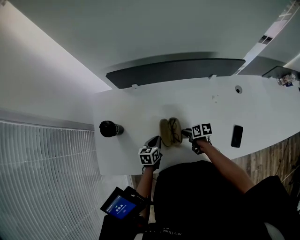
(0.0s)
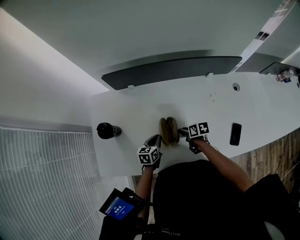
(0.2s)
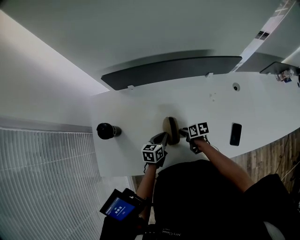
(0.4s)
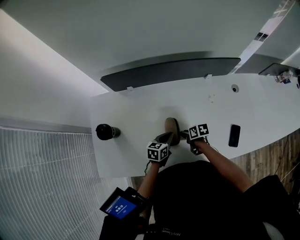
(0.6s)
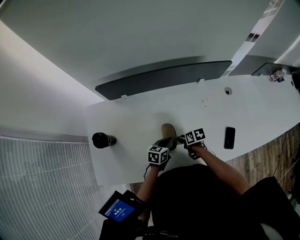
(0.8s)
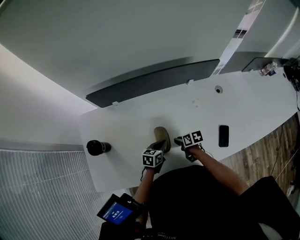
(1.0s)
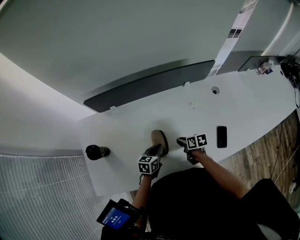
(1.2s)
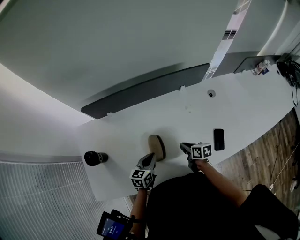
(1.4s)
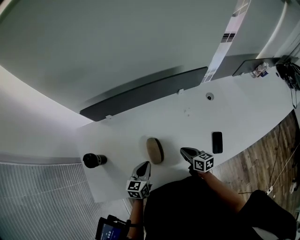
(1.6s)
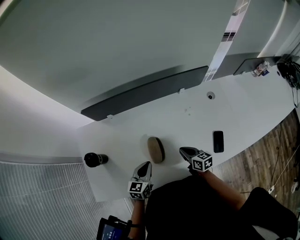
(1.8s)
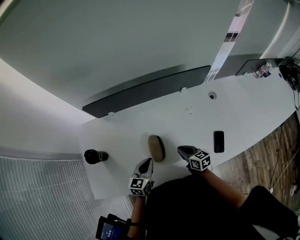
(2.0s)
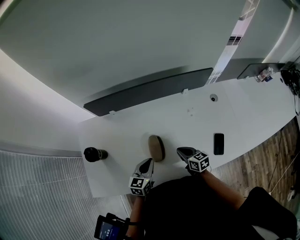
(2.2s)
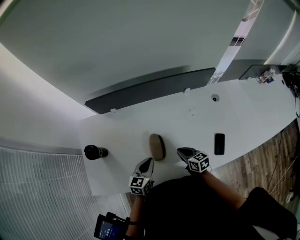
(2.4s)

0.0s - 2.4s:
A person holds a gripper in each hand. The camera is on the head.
0.0s - 1.2s: The right gripper travels to the right by roughly 5 cm. The left gripper shifts some 10 cm to the right.
1.2s - 2.4s: The two grippers go roughly 5 cm upward. The right gripper turns by about 30 degrees.

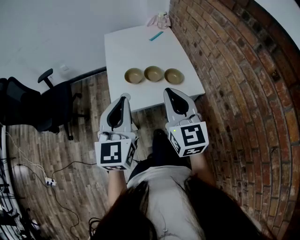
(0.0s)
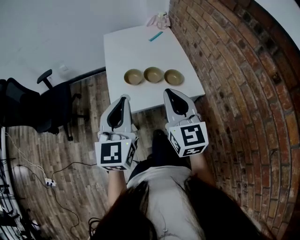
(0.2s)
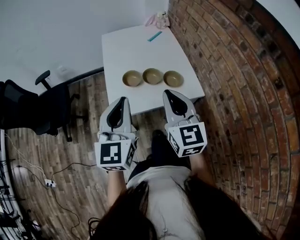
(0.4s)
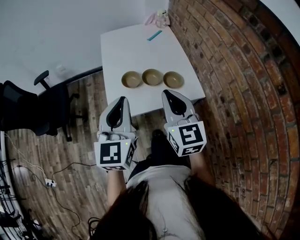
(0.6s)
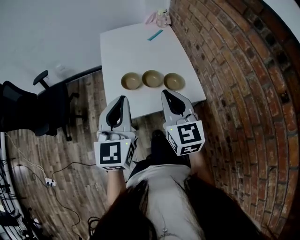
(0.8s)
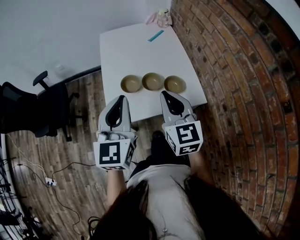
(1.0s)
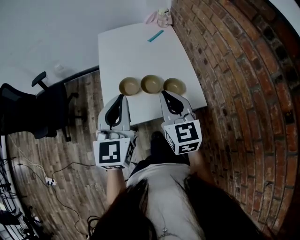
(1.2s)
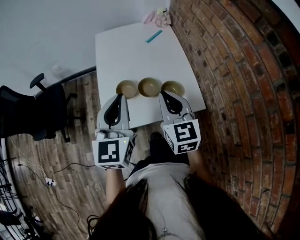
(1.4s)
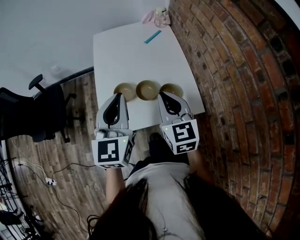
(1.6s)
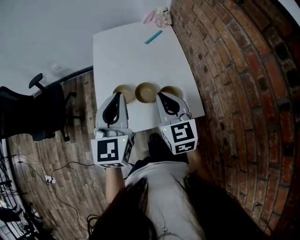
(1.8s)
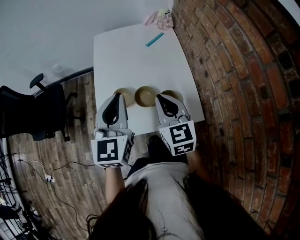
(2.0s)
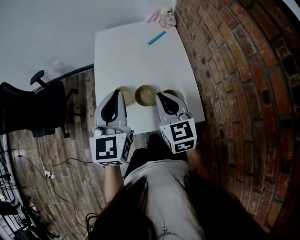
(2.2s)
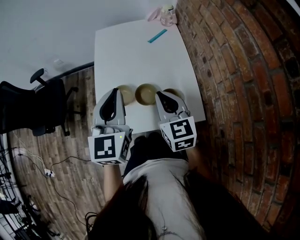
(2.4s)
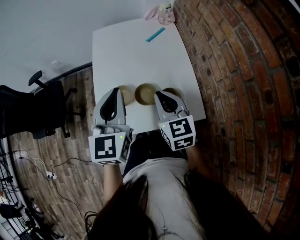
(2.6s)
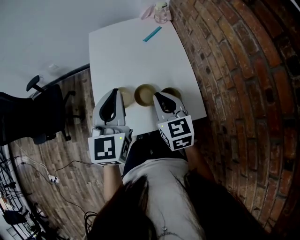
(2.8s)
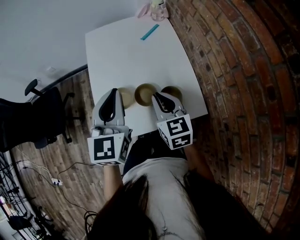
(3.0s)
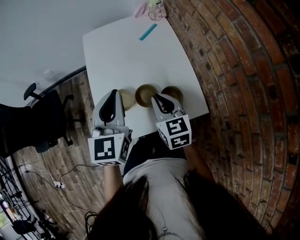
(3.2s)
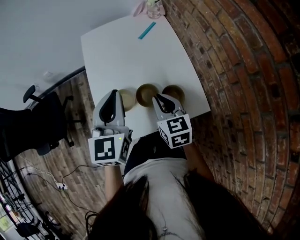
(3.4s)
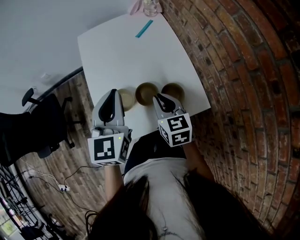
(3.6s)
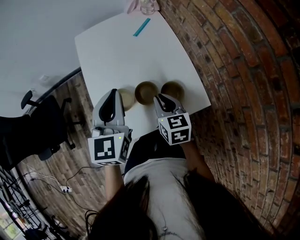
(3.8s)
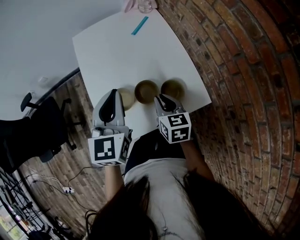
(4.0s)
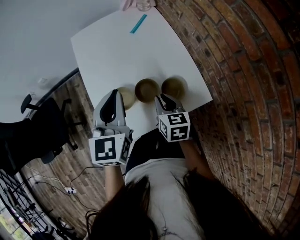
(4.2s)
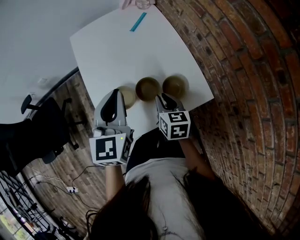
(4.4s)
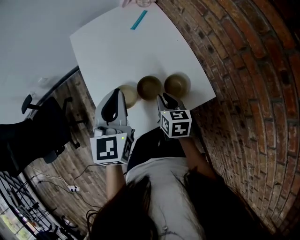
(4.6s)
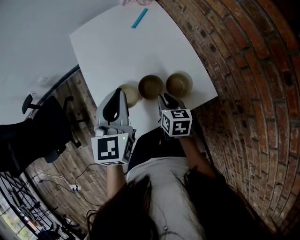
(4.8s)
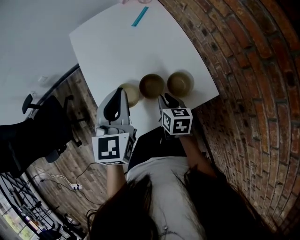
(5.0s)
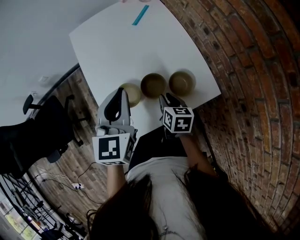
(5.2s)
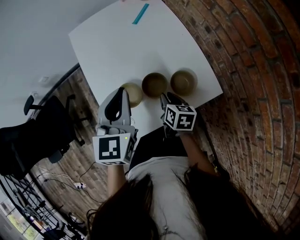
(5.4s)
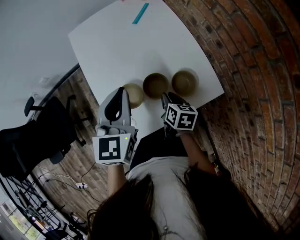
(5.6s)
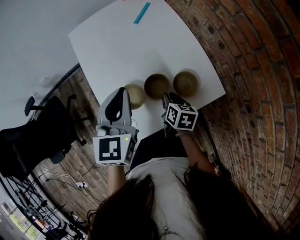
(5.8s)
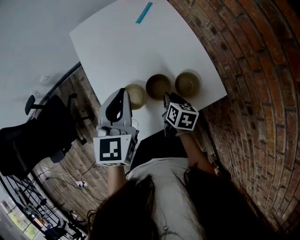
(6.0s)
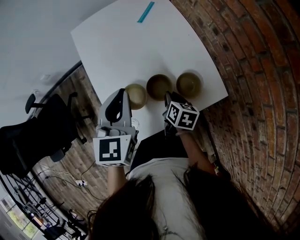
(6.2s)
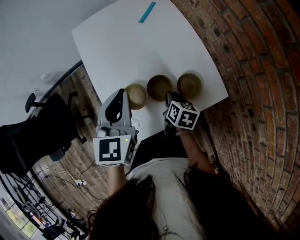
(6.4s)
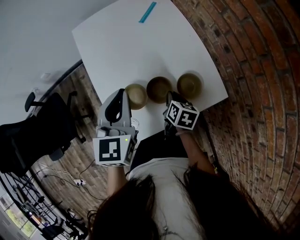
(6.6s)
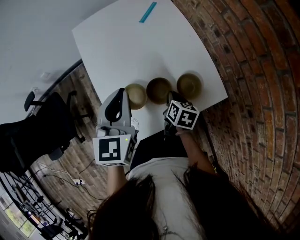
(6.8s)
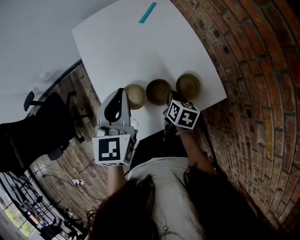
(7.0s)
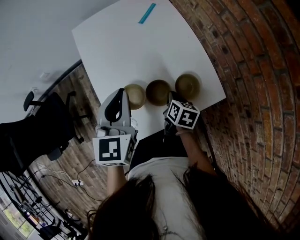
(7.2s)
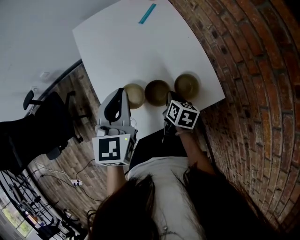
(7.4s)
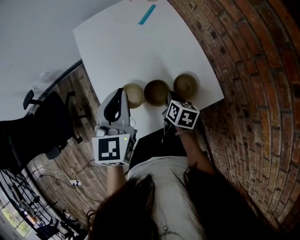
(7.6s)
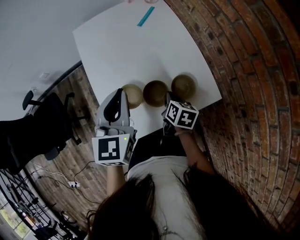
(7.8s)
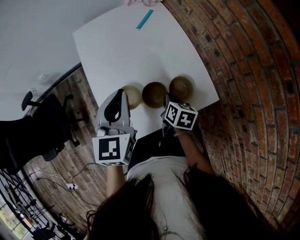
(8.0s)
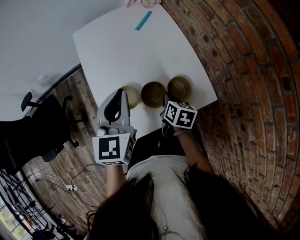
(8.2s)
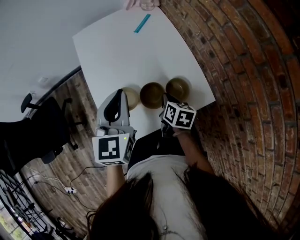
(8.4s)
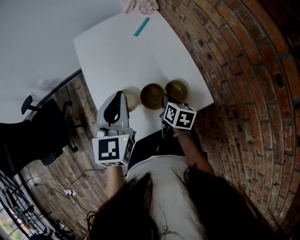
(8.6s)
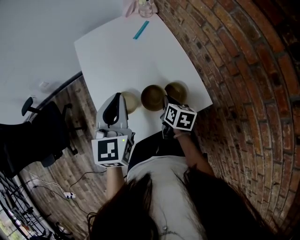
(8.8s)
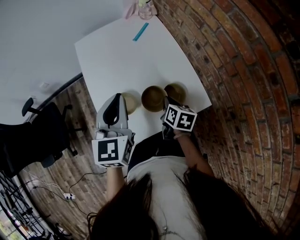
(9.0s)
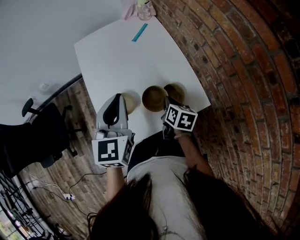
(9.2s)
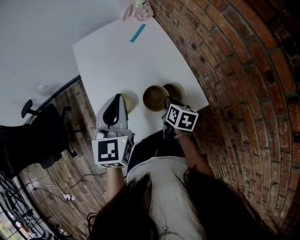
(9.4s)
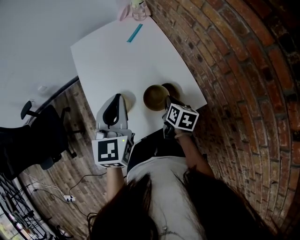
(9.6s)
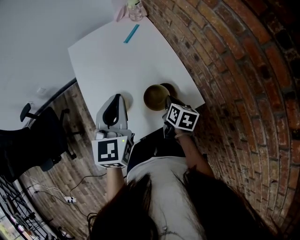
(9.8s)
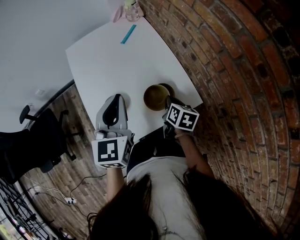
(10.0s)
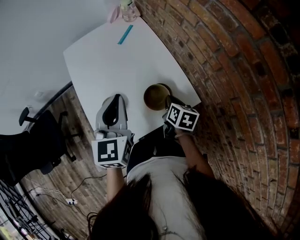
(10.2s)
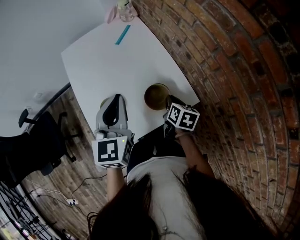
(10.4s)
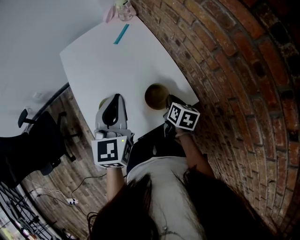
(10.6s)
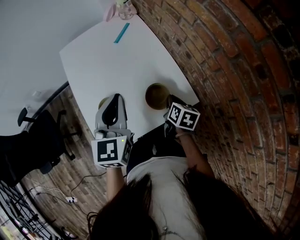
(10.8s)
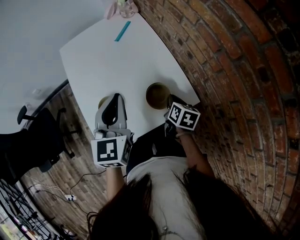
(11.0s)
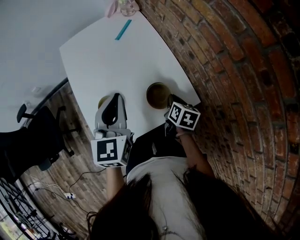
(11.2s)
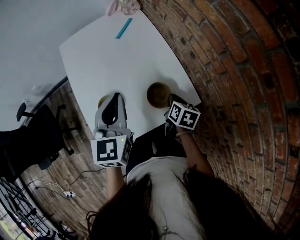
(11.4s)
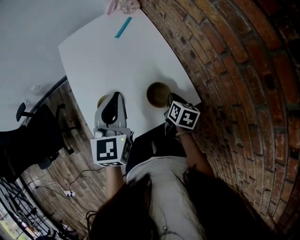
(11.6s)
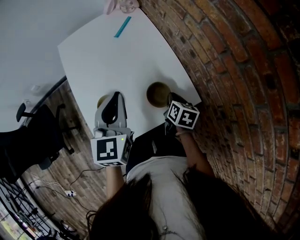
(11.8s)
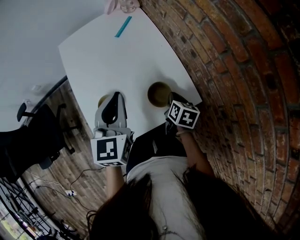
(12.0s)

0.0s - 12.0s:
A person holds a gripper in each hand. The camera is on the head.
0.0s - 1.6s: The right gripper goes approximately 20 cm forward and downward. Meanwhile the left gripper heads forward, covering approximately 20 cm.
1.6s - 3.0s: The right gripper travels forward and downward by about 10 cm, while the left gripper goes some 10 cm forward.
3.0s - 4.4s: The right gripper goes some 10 cm downward, and swivels some 30 degrees.
4.4s - 6.0s: The right gripper is displaced downward by about 10 cm, and rotates about 20 degrees.
6.0s - 7.6s: The grippers move only a little.
7.6s - 9.0s: The right gripper changes place by some 5 cm.
9.0s - 10.4s: Both grippers move to the right, approximately 10 cm.
10.4s - 12.0s: The grippers make only small movements.

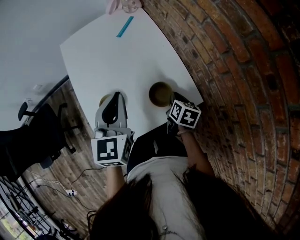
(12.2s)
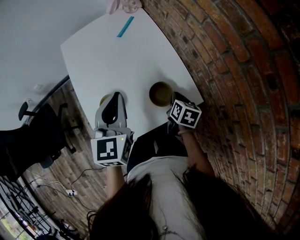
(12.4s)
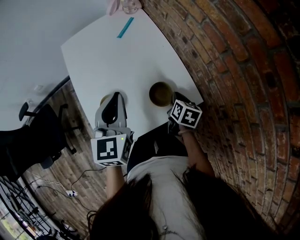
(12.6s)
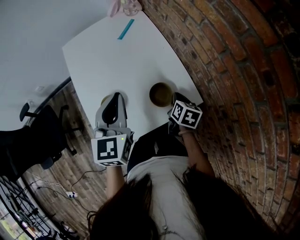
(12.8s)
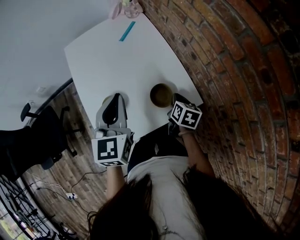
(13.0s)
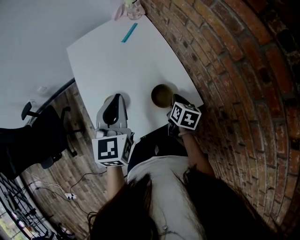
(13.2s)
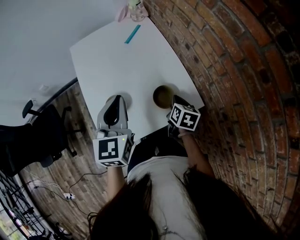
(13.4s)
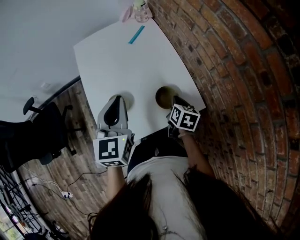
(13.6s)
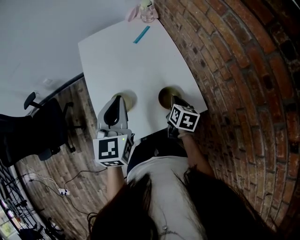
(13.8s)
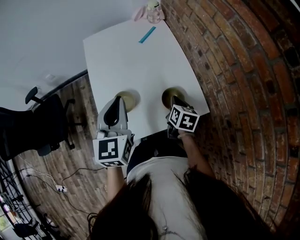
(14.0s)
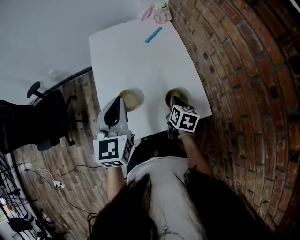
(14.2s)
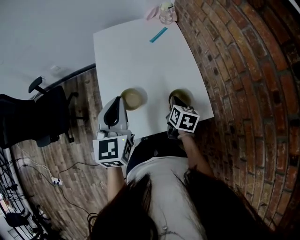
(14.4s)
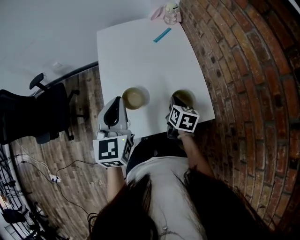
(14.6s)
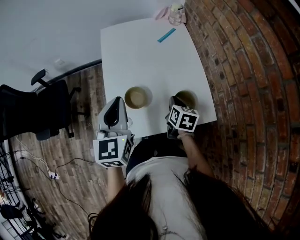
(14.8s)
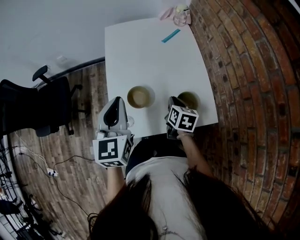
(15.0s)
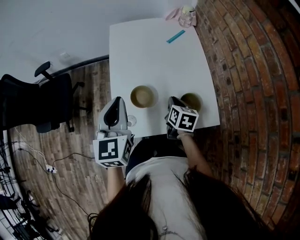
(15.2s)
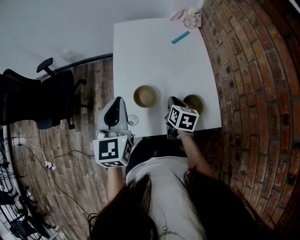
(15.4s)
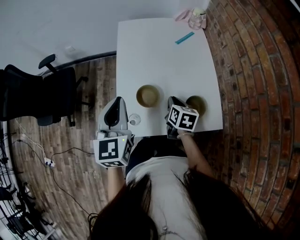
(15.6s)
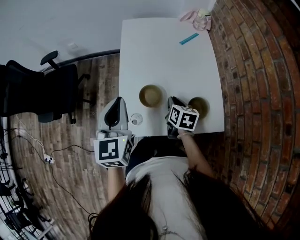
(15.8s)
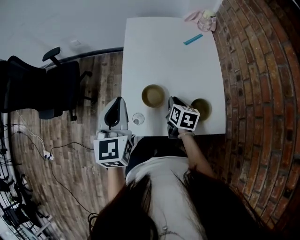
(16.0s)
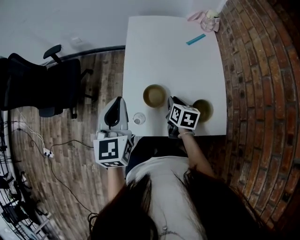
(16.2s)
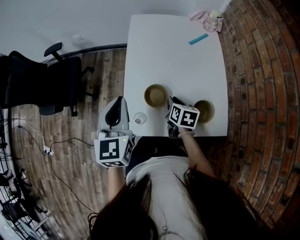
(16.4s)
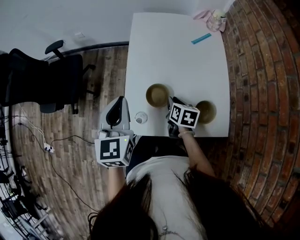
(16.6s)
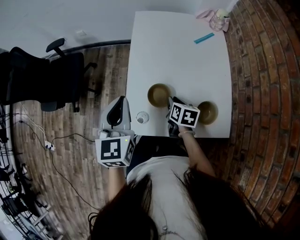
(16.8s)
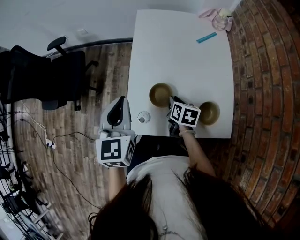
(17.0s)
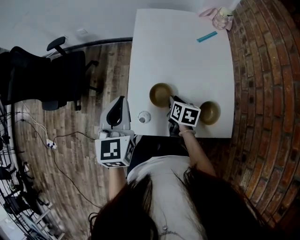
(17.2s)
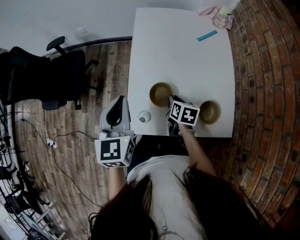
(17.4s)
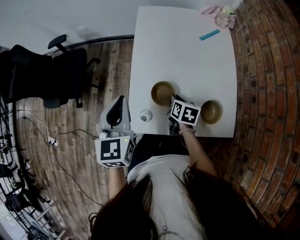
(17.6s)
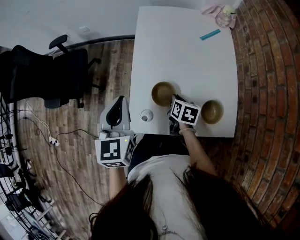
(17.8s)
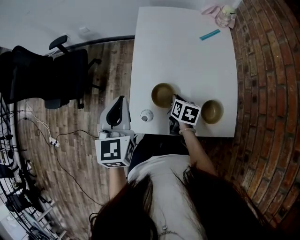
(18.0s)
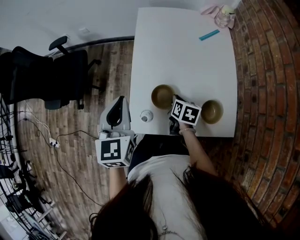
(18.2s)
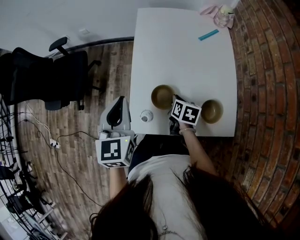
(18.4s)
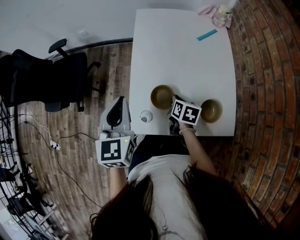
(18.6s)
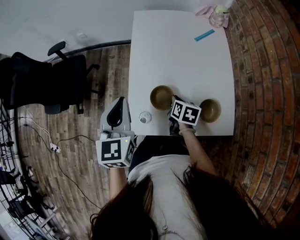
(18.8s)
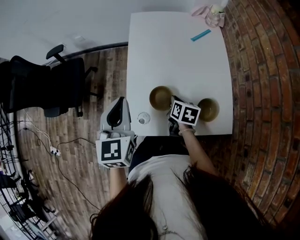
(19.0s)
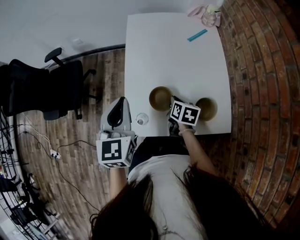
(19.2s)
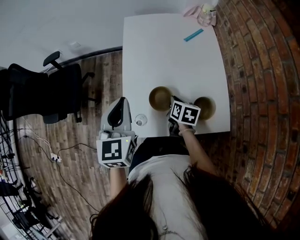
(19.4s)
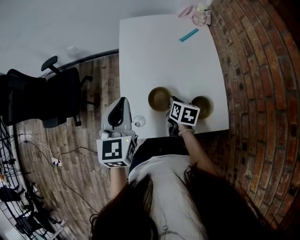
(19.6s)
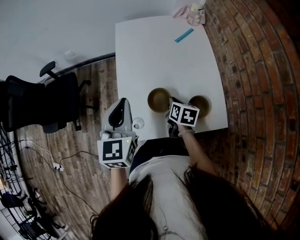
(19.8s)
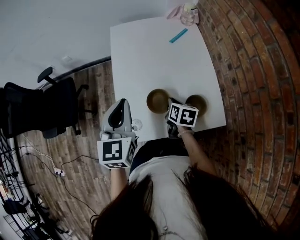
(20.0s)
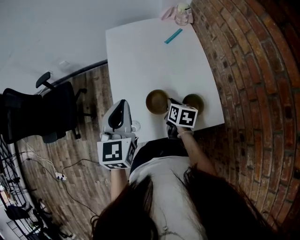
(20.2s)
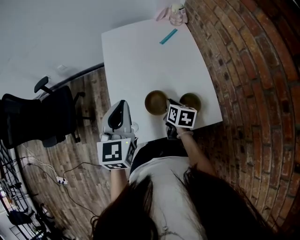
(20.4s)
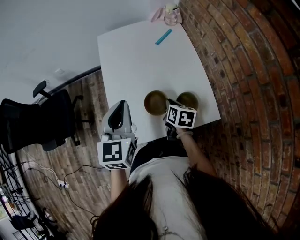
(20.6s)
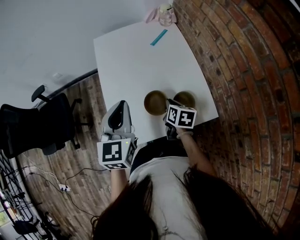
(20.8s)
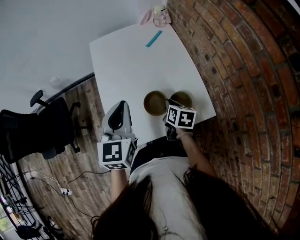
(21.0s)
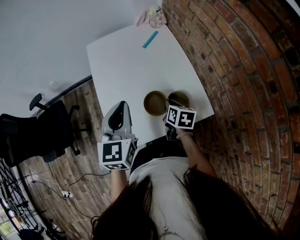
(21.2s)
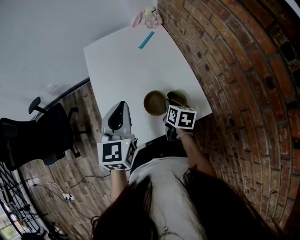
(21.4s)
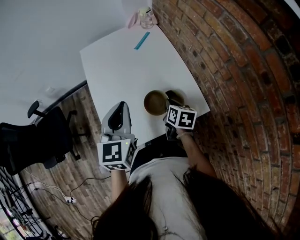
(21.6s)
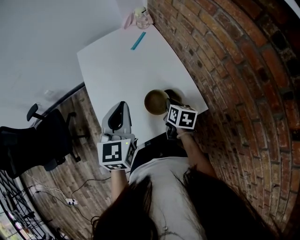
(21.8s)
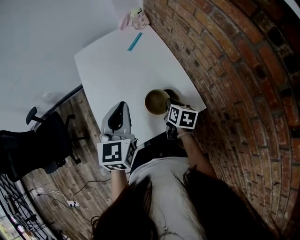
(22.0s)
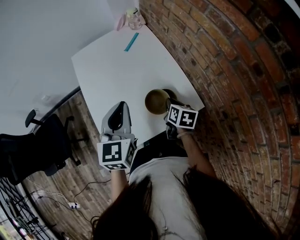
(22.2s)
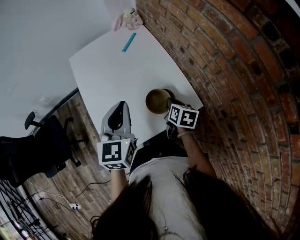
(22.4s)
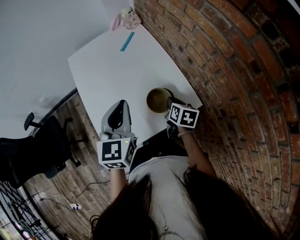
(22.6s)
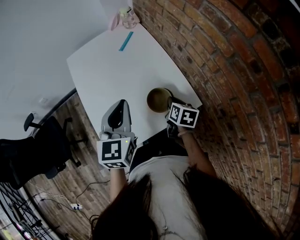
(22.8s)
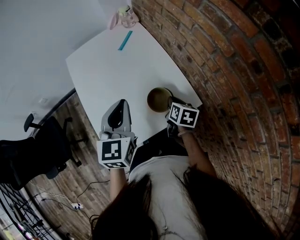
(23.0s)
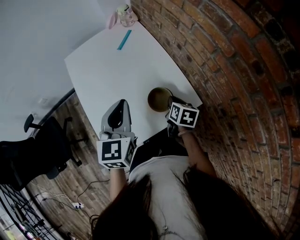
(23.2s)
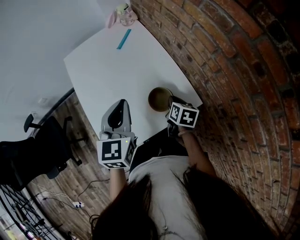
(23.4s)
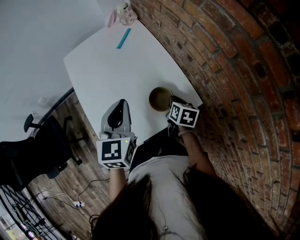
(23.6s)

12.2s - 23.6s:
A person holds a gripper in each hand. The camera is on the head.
12.2s - 13.6s: There are only small adjustments of the grippers.
13.6s - 15.0s: The grippers both shift to the left by roughly 10 cm.
15.0s - 16.4s: Both grippers travel together to the left, approximately 10 cm.
16.4s - 19.4s: There are only small adjustments of the grippers.
19.4s - 20.8s: Both grippers move to the right, about 10 cm.
20.8s - 22.2s: The grippers both shift to the right by some 10 cm.
22.2s - 23.6s: The grippers make only small movements.
